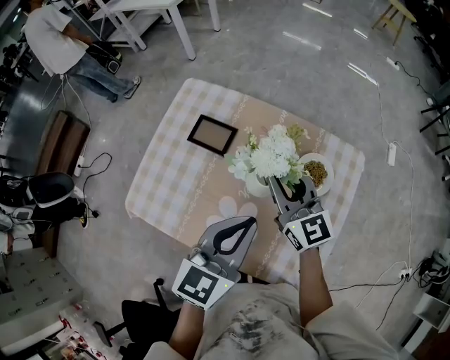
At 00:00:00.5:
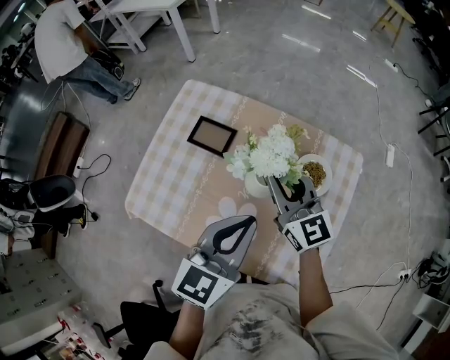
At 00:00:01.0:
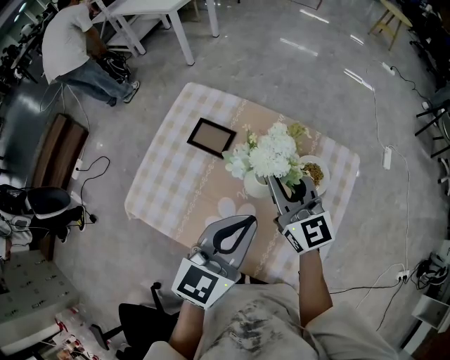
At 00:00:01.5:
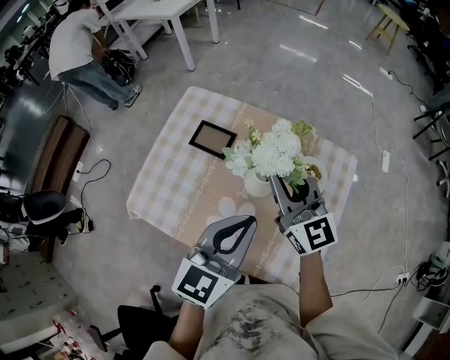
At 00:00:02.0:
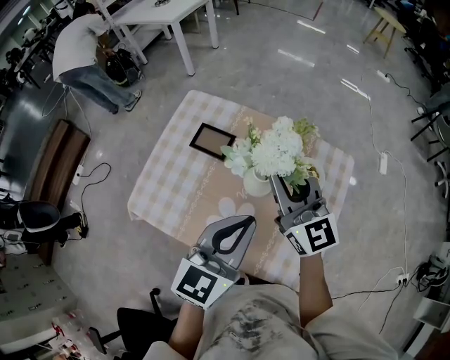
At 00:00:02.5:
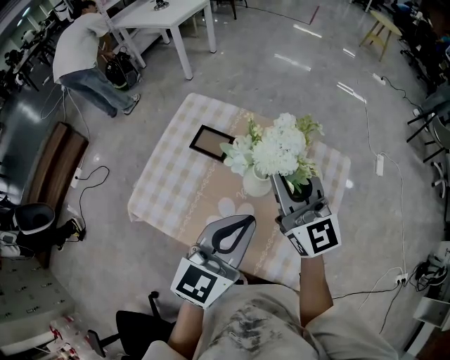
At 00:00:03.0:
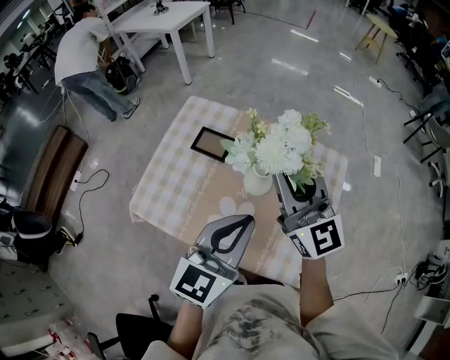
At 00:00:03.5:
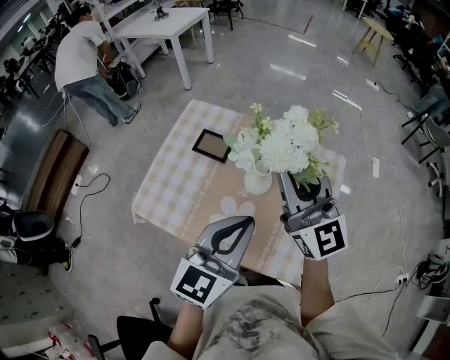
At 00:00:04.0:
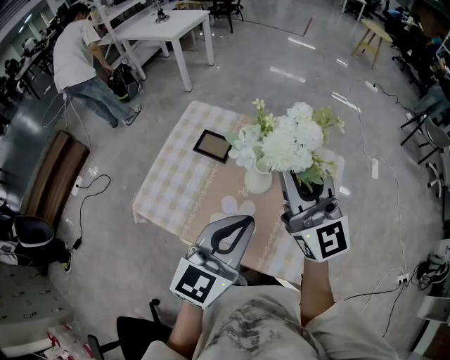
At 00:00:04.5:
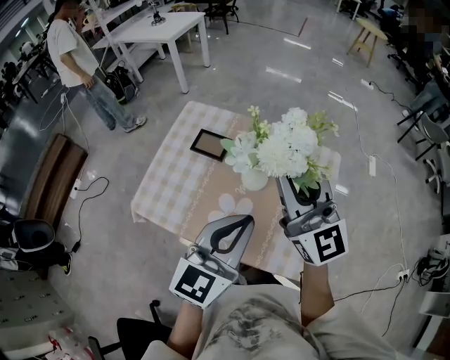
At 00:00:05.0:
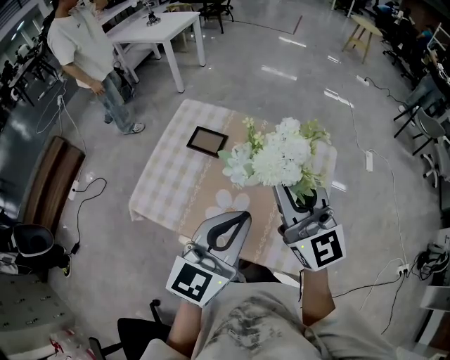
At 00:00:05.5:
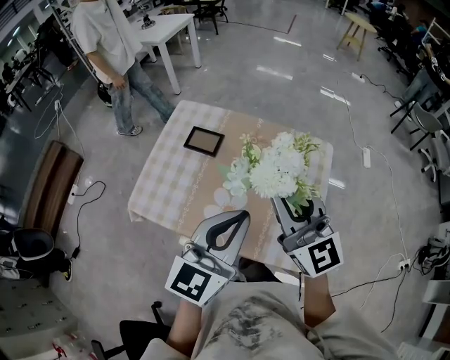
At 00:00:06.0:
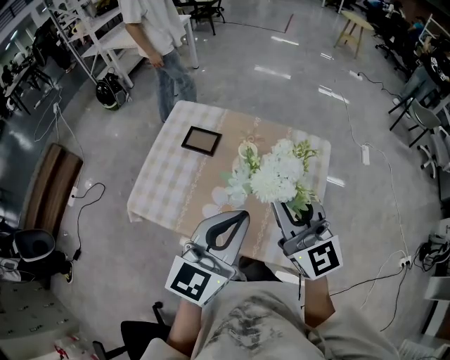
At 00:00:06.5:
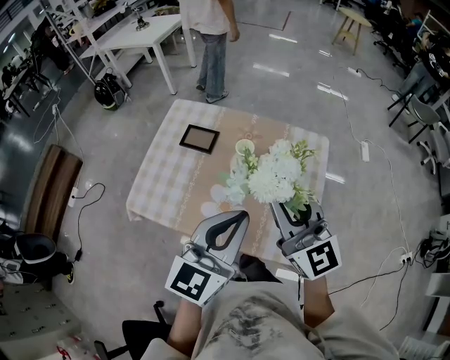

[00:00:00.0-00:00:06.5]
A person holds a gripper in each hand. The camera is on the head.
00:00:00.0 to 00:00:02.0: The right gripper is displaced upward by about 10 cm.
00:00:02.0 to 00:00:04.5: The left gripper shifts approximately 5 cm backward, while the right gripper shifts roughly 15 cm upward and backward.
00:00:04.5 to 00:00:06.5: The right gripper heads backward, covering some 5 cm.

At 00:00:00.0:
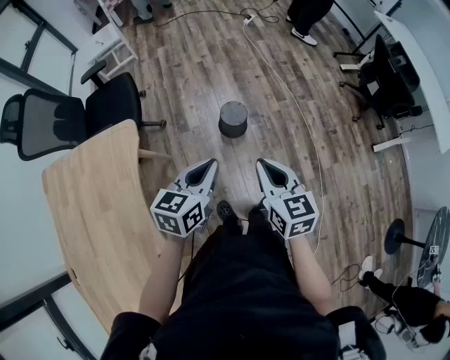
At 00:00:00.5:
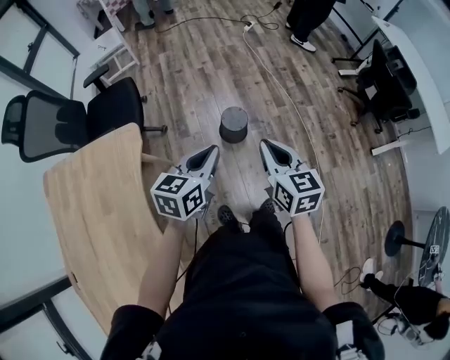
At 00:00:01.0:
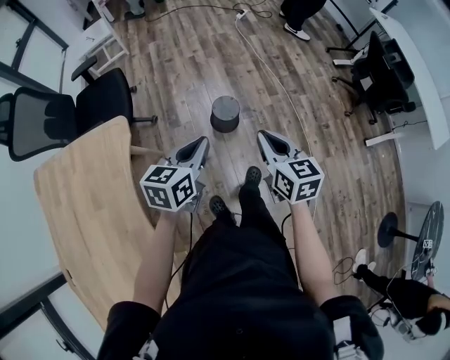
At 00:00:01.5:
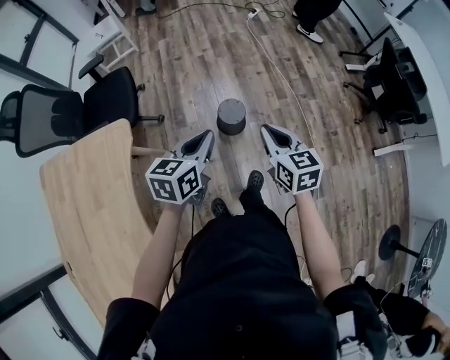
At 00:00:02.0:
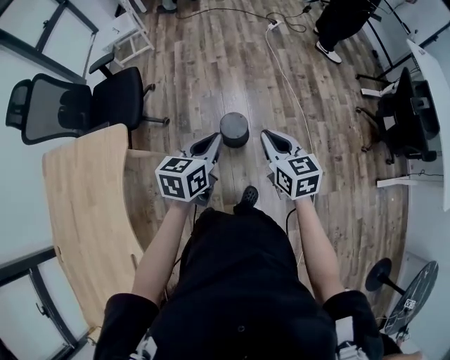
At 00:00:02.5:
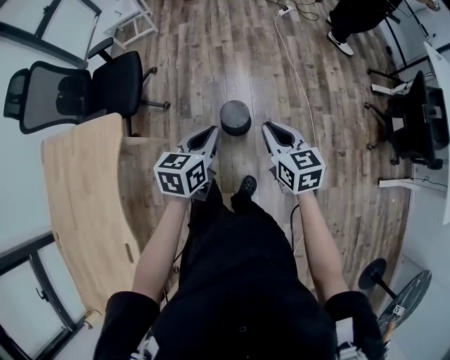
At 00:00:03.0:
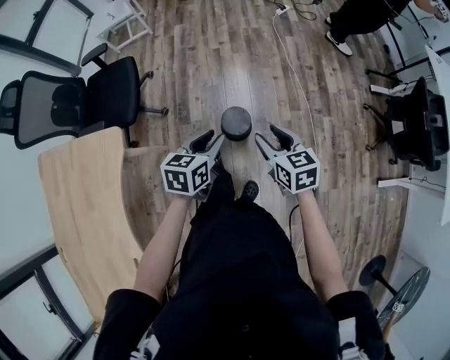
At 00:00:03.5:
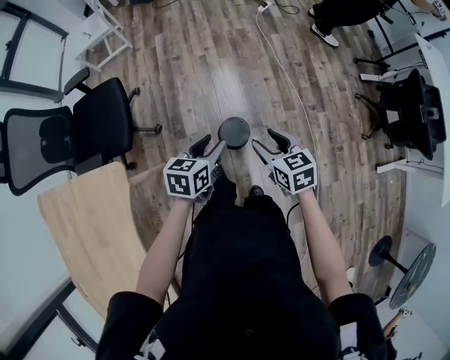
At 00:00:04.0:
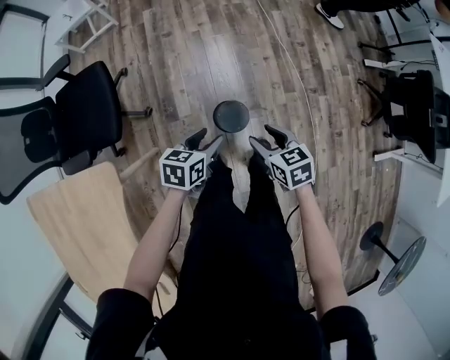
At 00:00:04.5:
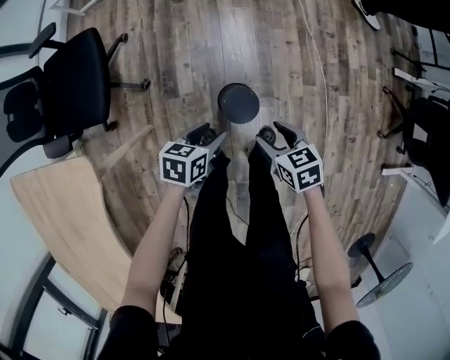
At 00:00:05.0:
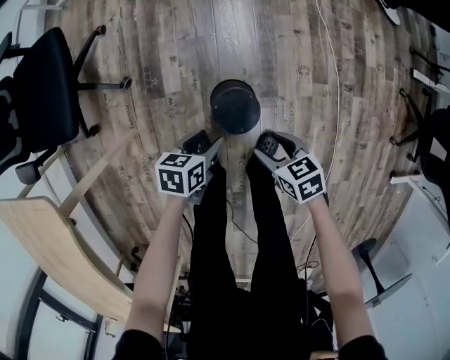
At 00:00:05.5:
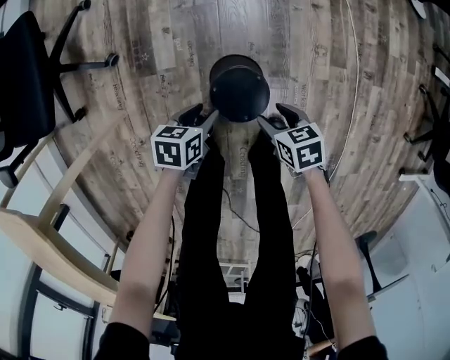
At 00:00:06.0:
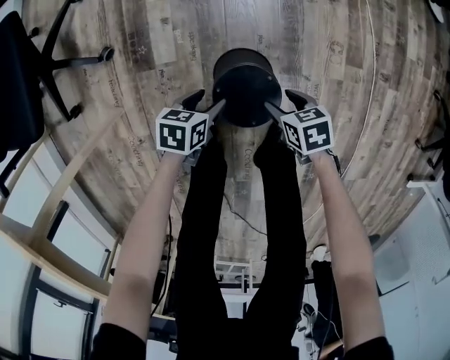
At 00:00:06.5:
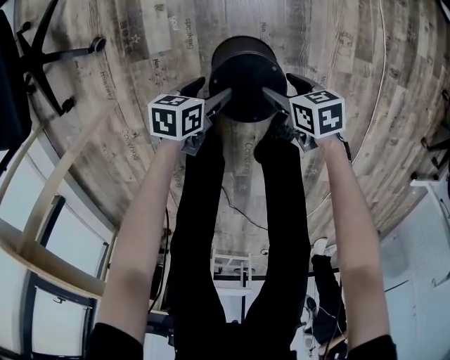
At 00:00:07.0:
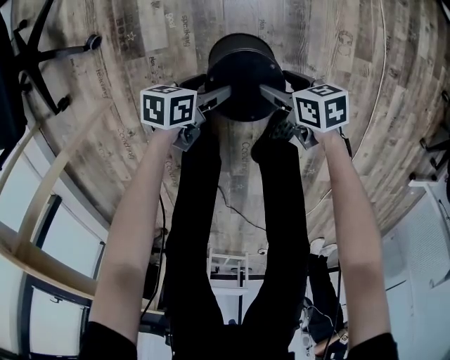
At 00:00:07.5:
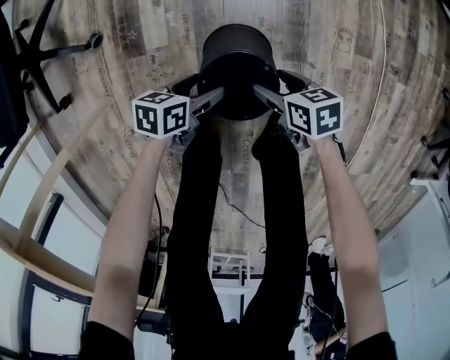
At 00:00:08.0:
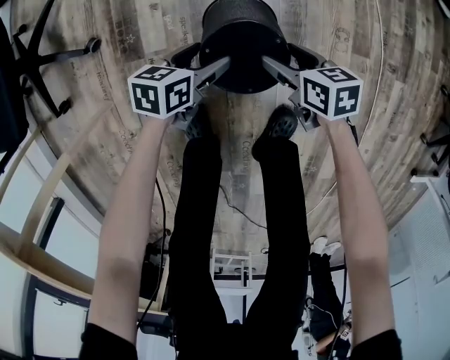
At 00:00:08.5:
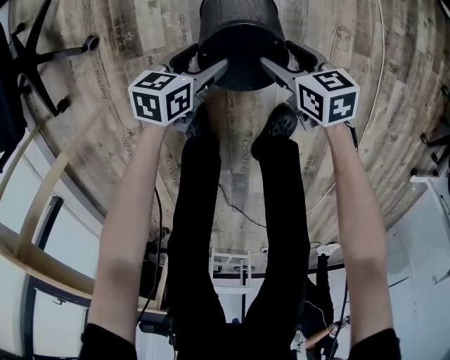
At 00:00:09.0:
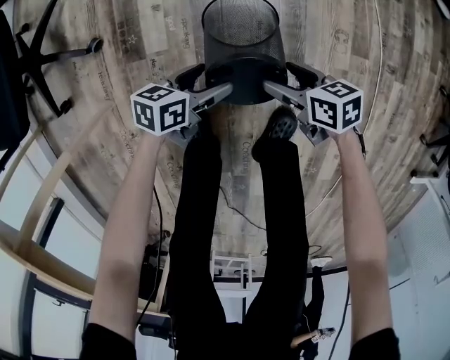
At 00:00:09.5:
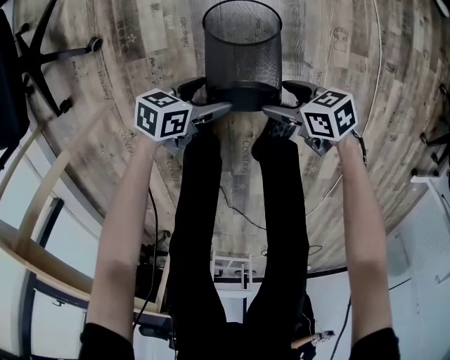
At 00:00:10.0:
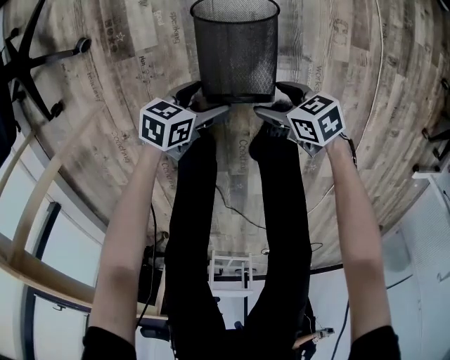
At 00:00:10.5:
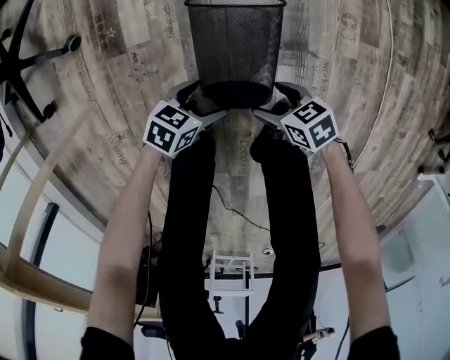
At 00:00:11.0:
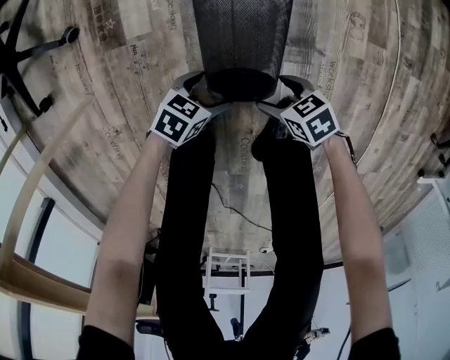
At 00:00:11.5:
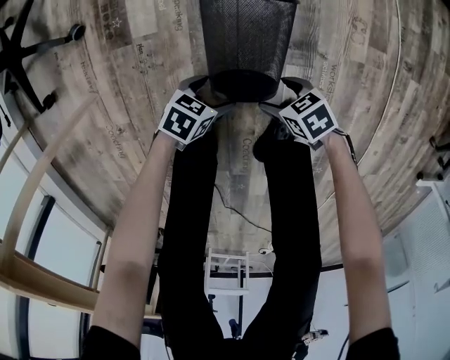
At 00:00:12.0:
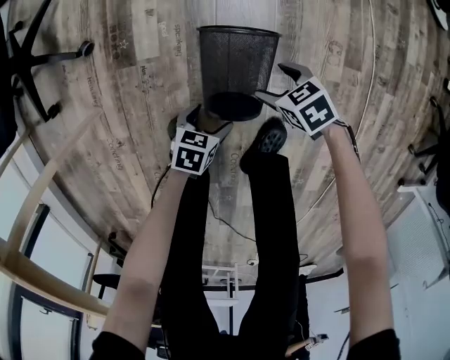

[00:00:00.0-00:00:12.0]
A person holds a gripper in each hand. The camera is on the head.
00:00:00.0 to 00:00:02.0: The grippers both shift forward and to the right by roughly 20 cm.
00:00:02.0 to 00:00:04.0: Both grippers travel together downward, forward and to the left, some 25 cm. The left gripper turns by roughly 20 degrees, and opens up. Meanwhile the right gripper changes its angle by roughly 20 degrees, and opens up.
00:00:04.0 to 00:00:06.0: The grippers both shift downward by approximately 50 cm. The left gripper swivels roughly 20 degrees. The right gripper swivels approximately 30 degrees.
00:00:06.0 to 00:00:08.0: The left gripper moves about 10 cm. The right gripper changes place by about 10 cm.
00:00:08.0 to 00:00:10.0: The left gripper shifts by about 15 cm, while the right gripper ends up roughly 15 cm from where it was, and rotates some 20 degrees.
00:00:10.0 to 00:00:12.0: The left gripper moves about 10 cm downward and comes back. Meanwhile the right gripper travels downward and back again, approximately 10 cm each way, and changes its angle by about 20 degrees.

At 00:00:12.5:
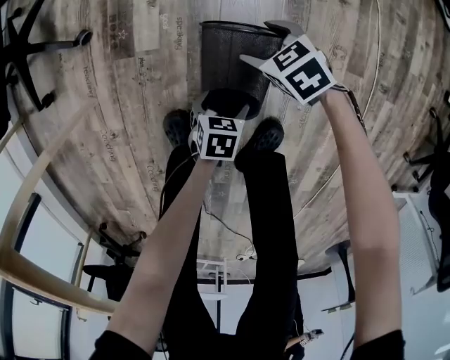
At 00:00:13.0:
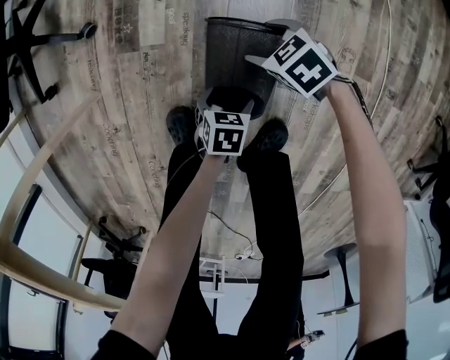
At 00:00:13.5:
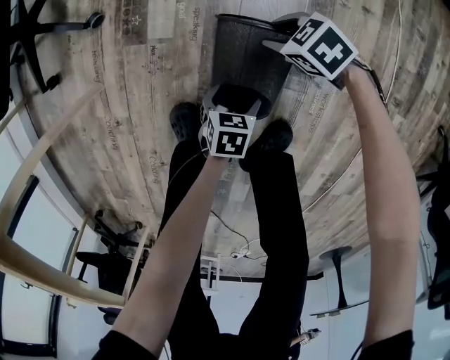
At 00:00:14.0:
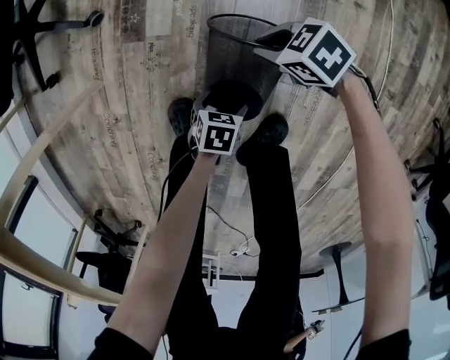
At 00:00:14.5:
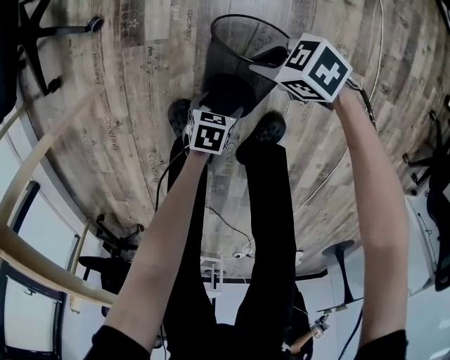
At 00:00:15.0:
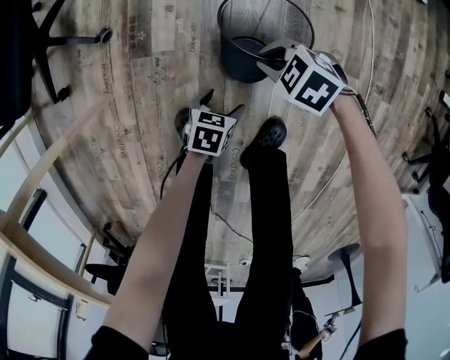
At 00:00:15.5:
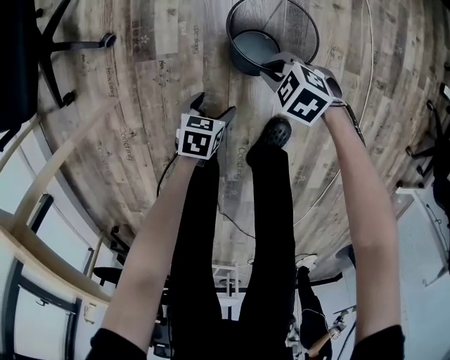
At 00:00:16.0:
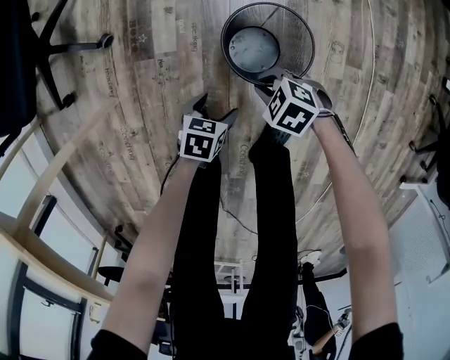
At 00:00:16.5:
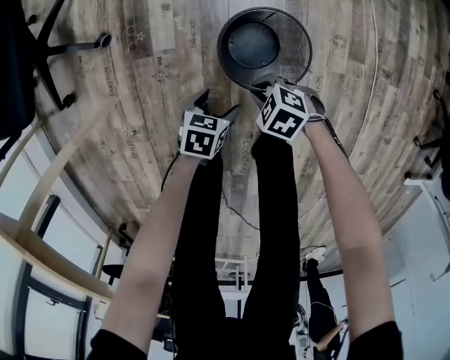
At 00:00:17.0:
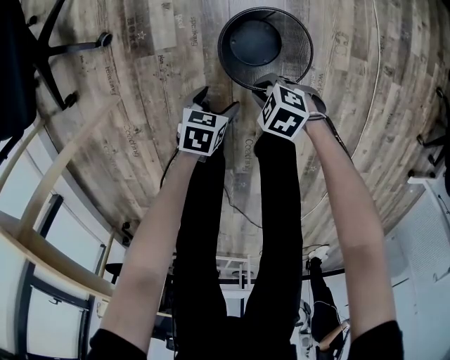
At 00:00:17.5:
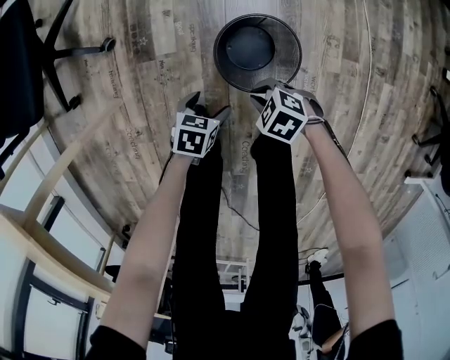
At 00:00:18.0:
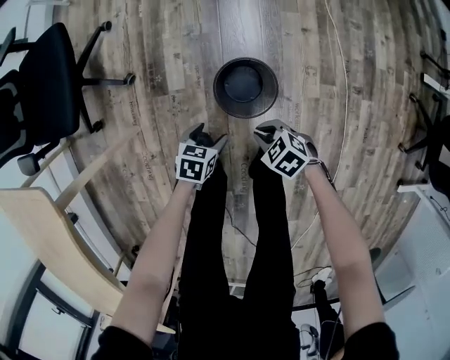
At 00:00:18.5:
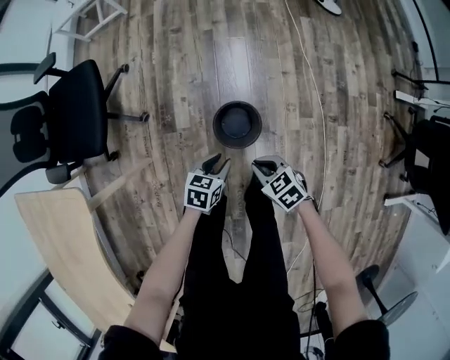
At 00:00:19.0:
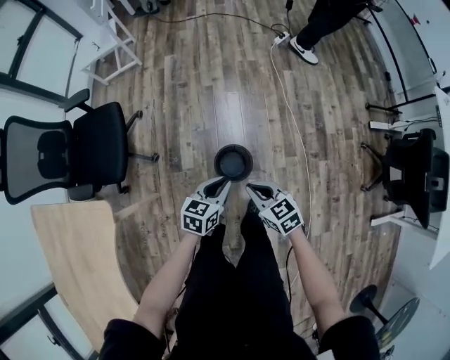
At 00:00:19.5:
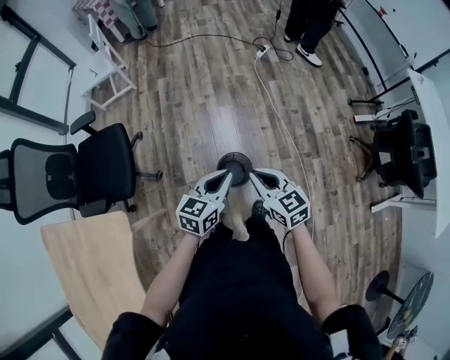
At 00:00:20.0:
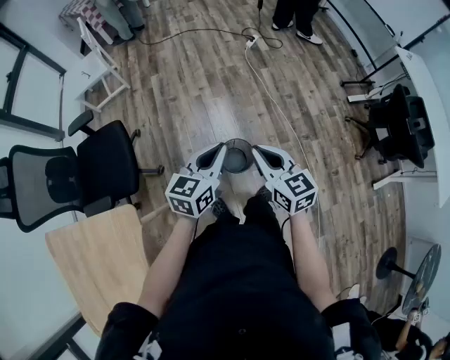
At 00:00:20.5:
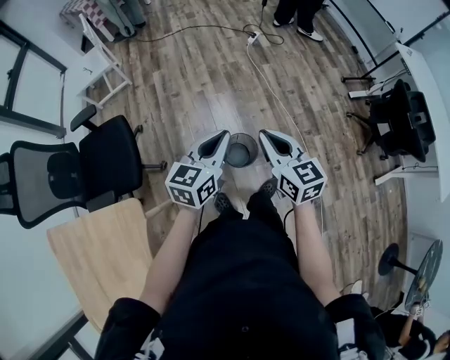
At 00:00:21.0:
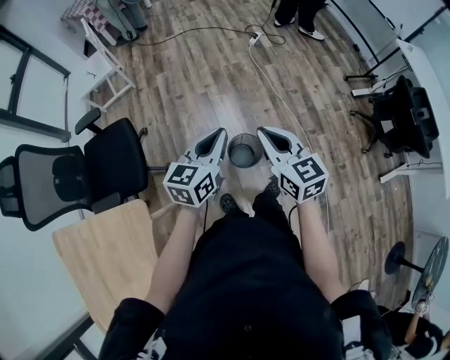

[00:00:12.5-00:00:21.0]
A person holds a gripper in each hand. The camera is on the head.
00:00:12.5 to 00:00:14.5: The right gripper ends up about 10 cm from where it was, changes its angle by approximately 20 degrees, and closes.
00:00:14.5 to 00:00:16.5: The left gripper heads upward, covering approximately 5 cm; the right gripper moves about 10 cm.
00:00:16.5 to 00:00:19.0: Both grippers move upward, some 50 cm. The right gripper turns by roughly 50 degrees. Meanwhile the left gripper changes its angle by roughly 30 degrees, and closes its fingers.
00:00:19.0 to 00:00:21.0: Both grippers move upward, roughly 25 cm. The left gripper rotates approximately 20 degrees. Meanwhile the right gripper changes its angle by some 30 degrees.
